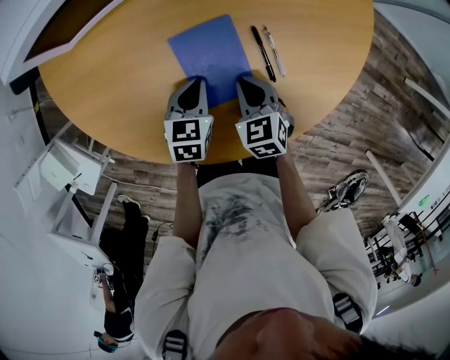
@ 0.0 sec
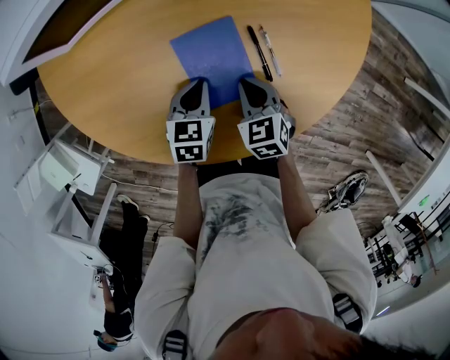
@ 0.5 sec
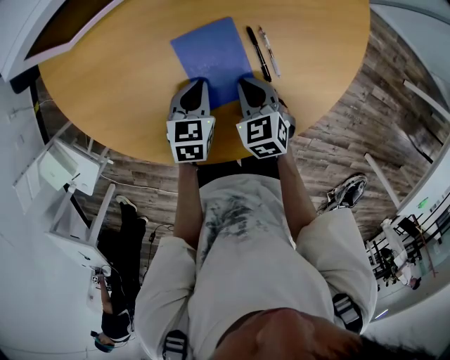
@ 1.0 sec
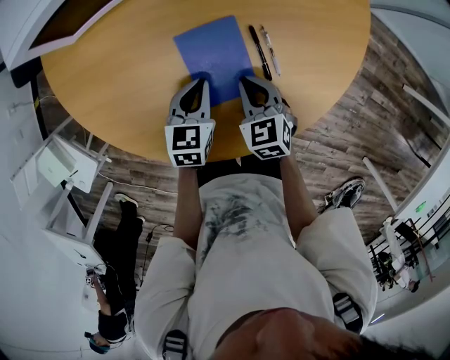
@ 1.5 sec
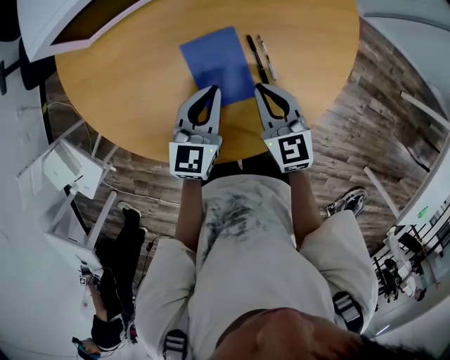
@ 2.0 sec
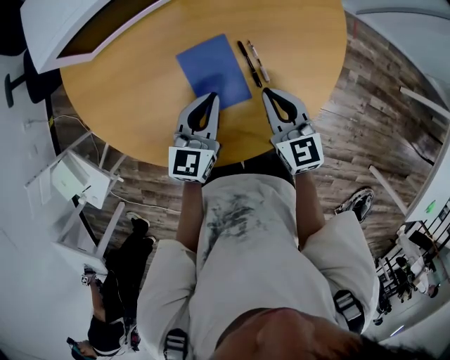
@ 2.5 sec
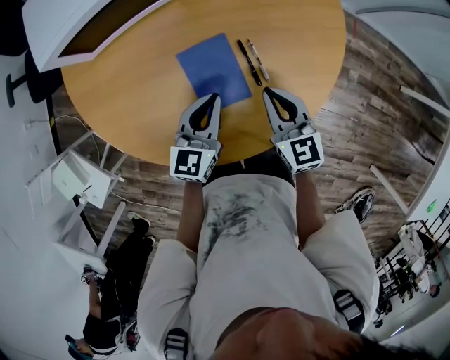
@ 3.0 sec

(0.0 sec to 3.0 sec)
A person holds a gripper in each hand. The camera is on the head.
0.0 sec - 1.5 sec: There are only small adjustments of the grippers.
1.5 sec - 3.0 sec: The right gripper is displaced upward and to the right by some 15 cm, and turns by about 20 degrees; the left gripper heads upward, covering roughly 10 cm, and swivels about 20 degrees.

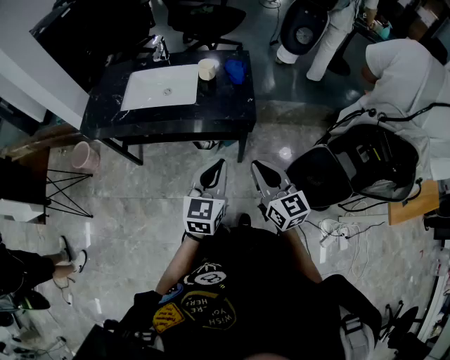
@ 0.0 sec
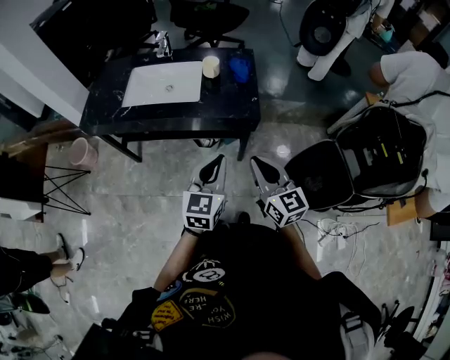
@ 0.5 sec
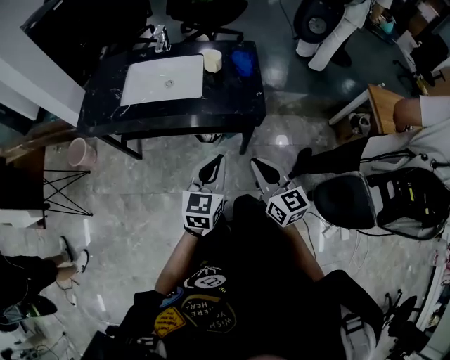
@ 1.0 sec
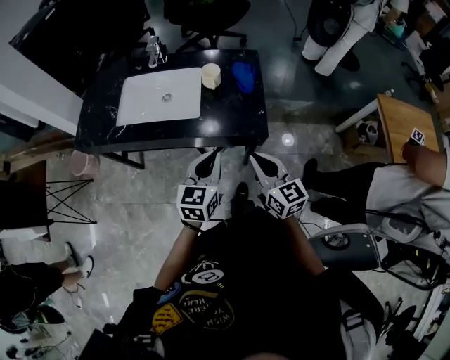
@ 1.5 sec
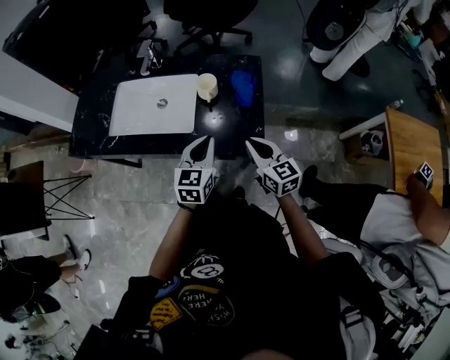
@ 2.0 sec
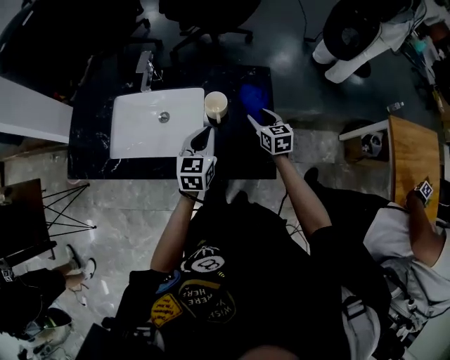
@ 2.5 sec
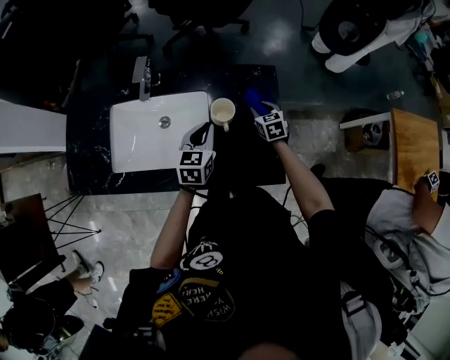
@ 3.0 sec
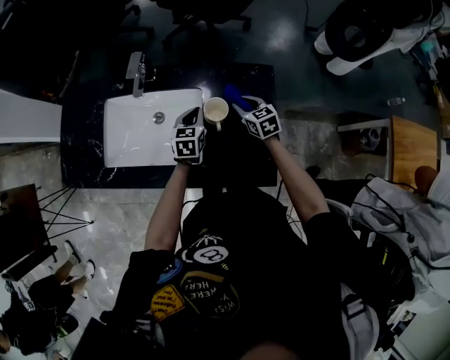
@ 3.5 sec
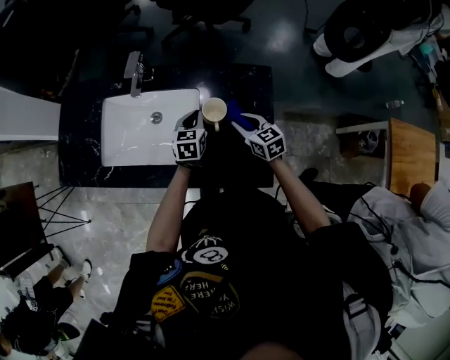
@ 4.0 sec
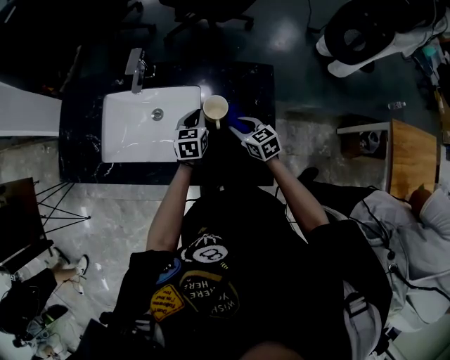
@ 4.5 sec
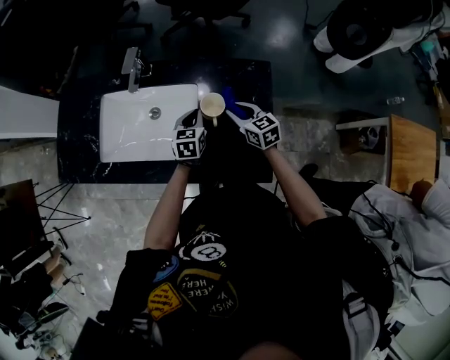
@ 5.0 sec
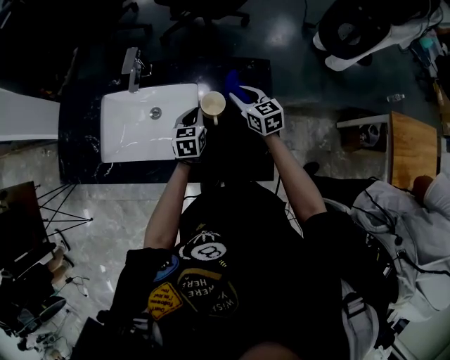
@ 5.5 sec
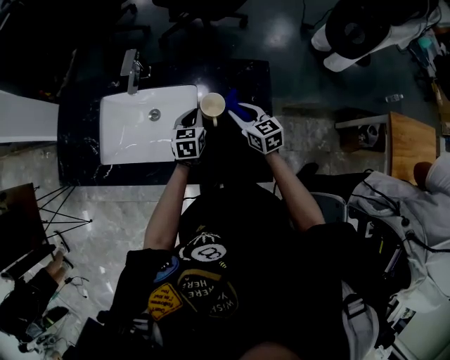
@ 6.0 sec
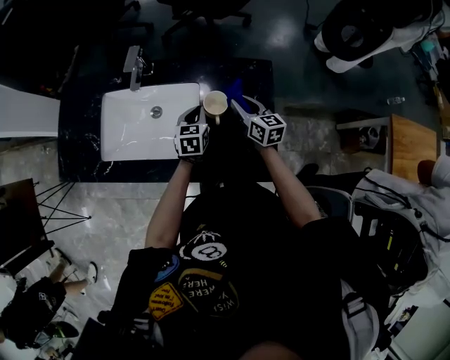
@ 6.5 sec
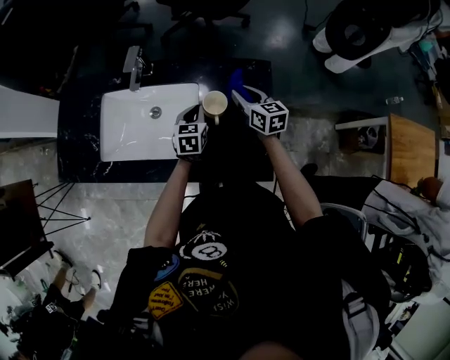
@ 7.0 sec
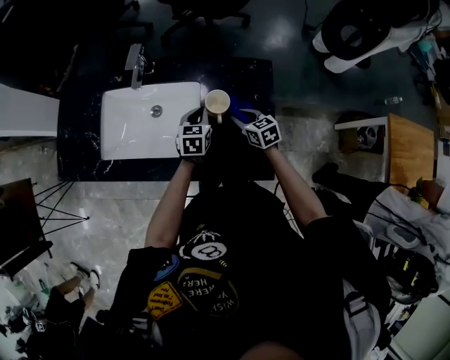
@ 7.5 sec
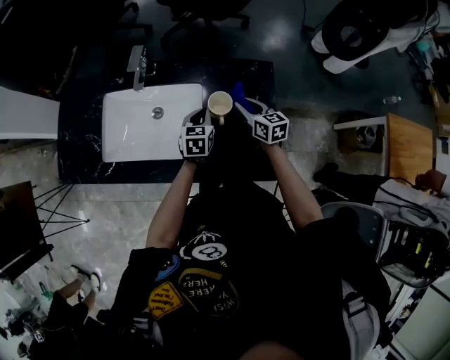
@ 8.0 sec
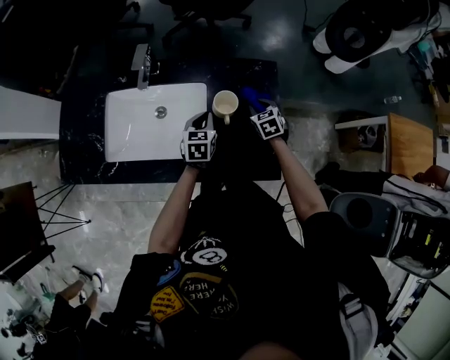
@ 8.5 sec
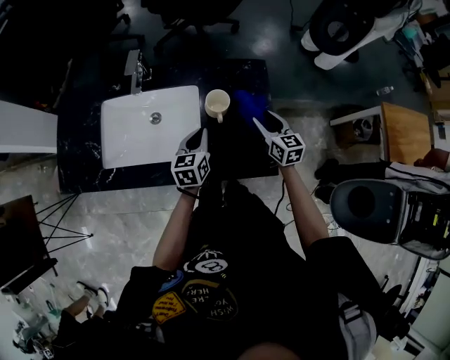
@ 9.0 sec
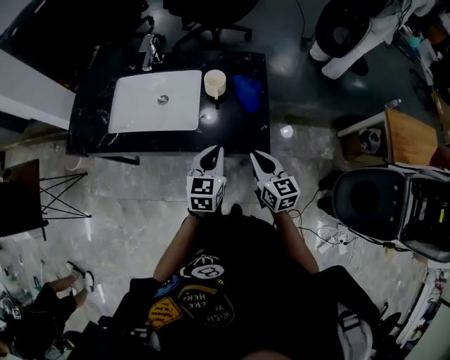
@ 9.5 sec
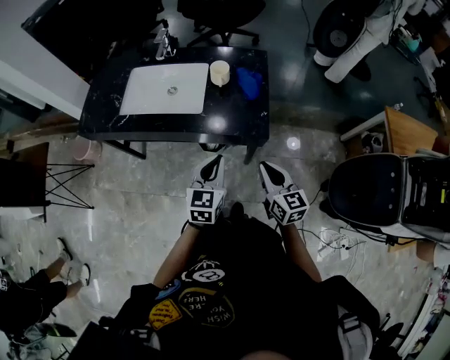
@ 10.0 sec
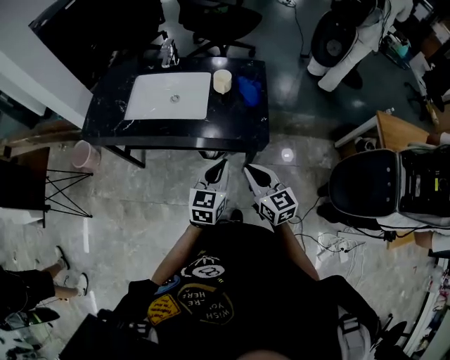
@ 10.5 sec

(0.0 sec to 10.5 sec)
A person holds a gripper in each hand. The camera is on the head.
0.0 sec - 2.0 sec: Both grippers move forward, some 30 cm.
2.0 sec - 4.0 sec: Both grippers move forward and downward, roughly 30 cm. The right gripper opens.
4.0 sec - 6.5 sec: The right gripper ends up about 5 cm from where it was, and turns by about 20 degrees.
6.5 sec - 8.5 sec: The right gripper moves up and down over roughly 10 cm, changing direction 2 times, and tilts its fingers some 30 degrees downward.
8.5 sec - 10.5 sec: The pair of grippers is taken backward, roughly 40 cm. The grippers both shift upward by roughly 20 cm. The right gripper tilts its fingers some 40 degrees upward, and closes up. The left gripper turns by some 20 degrees.

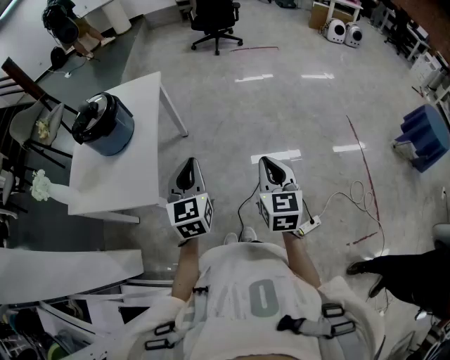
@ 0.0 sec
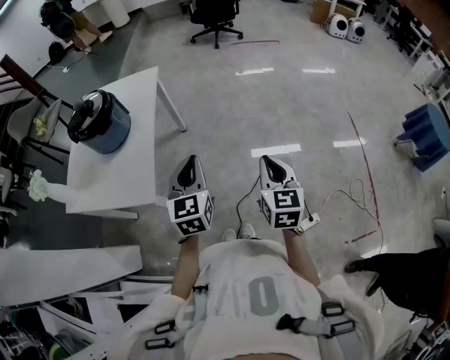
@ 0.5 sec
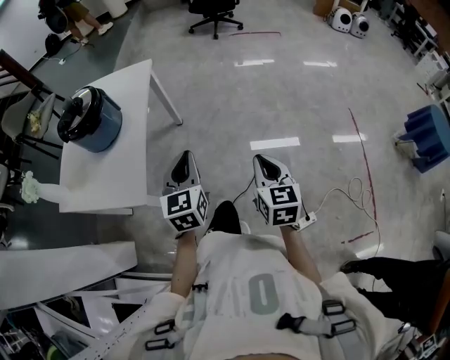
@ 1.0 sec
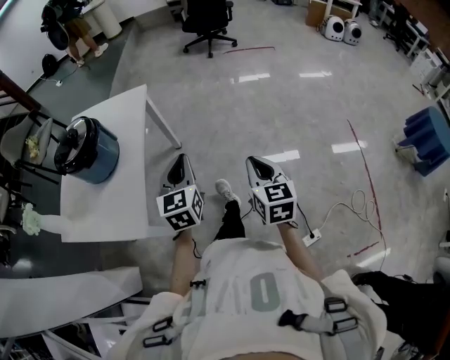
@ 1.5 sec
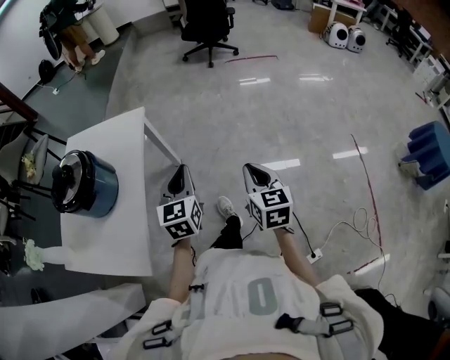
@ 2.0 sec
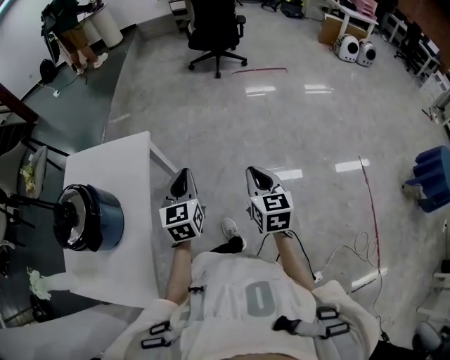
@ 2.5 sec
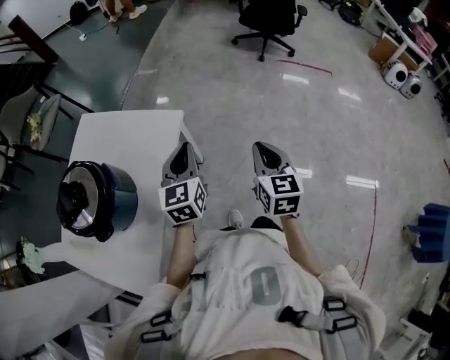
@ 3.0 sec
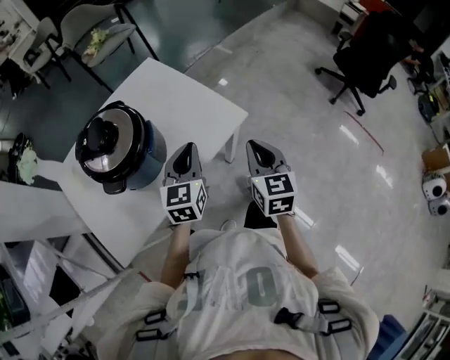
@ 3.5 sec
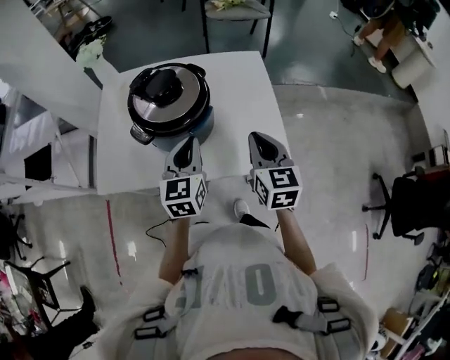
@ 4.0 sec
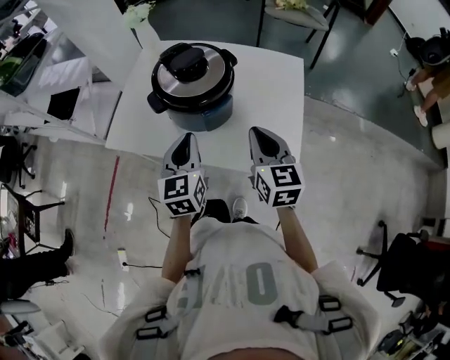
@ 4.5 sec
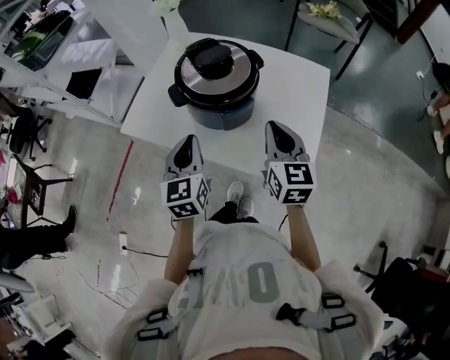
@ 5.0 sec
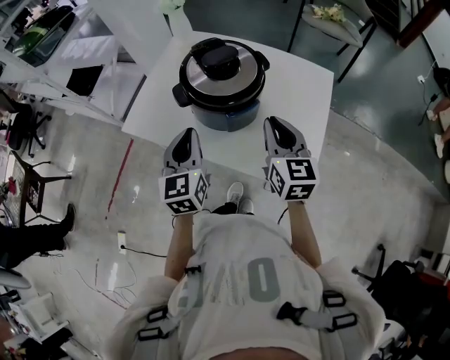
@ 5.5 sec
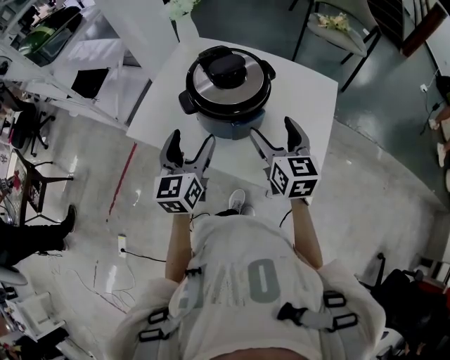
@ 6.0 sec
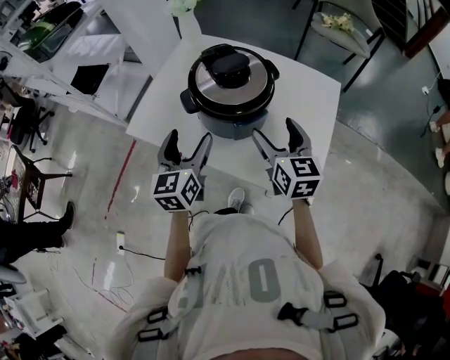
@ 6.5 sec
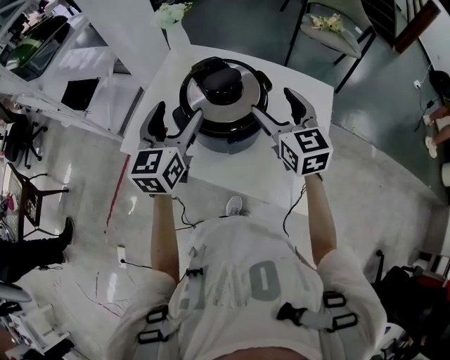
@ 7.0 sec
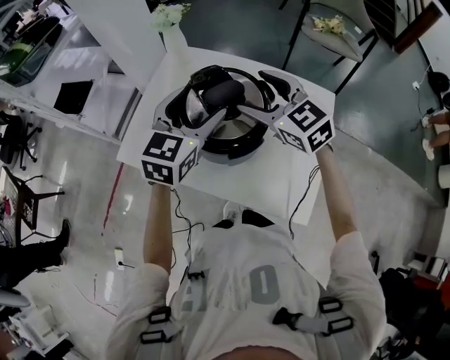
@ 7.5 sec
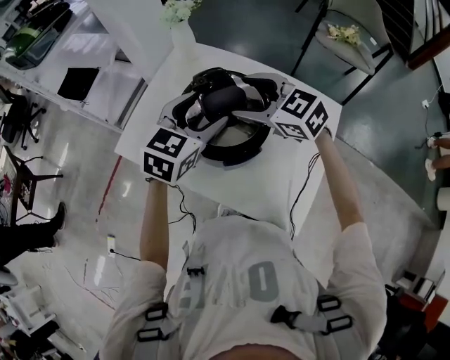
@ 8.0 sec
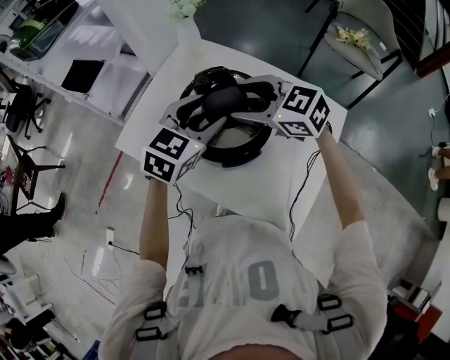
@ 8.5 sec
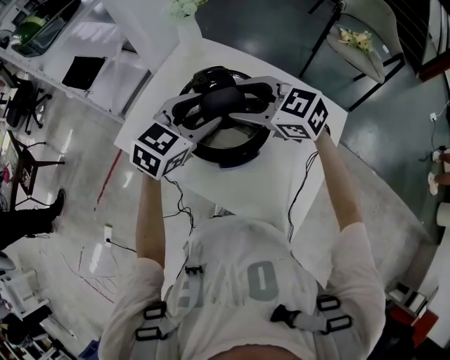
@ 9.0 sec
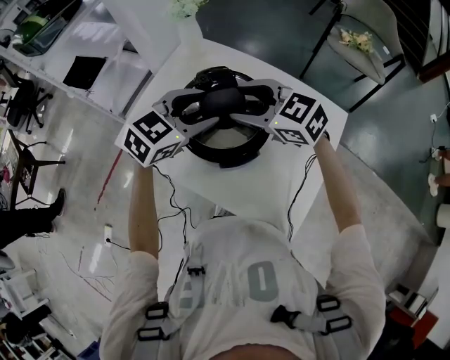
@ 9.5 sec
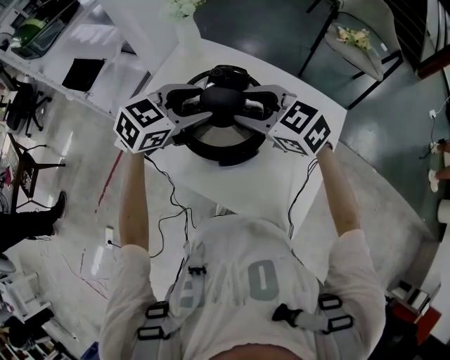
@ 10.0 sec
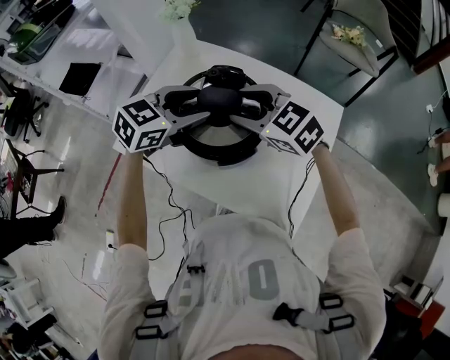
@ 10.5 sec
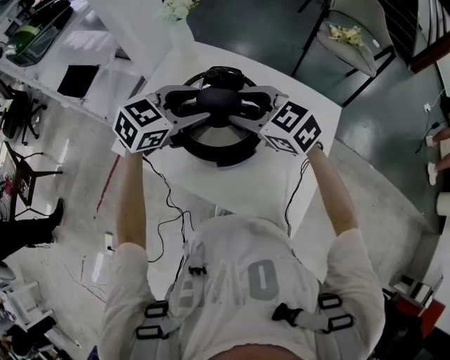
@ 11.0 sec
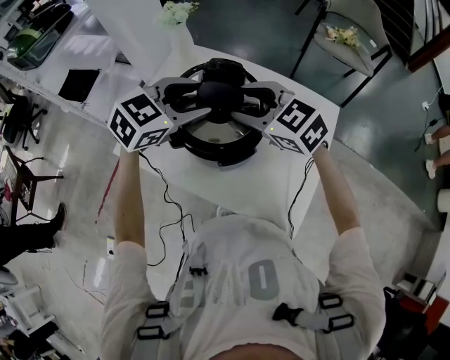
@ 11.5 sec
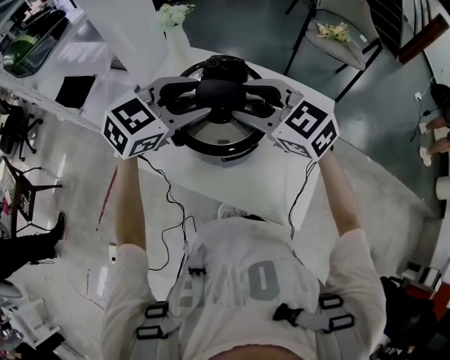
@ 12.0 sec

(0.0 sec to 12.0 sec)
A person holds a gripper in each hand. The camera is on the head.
0.0 sec - 2.0 sec: Both grippers travel together forward, about 30 cm.
2.0 sec - 4.0 sec: The right gripper moves roughly 60 cm, and changes its angle by roughly 90 degrees; the left gripper ends up approximately 40 cm from where it was, and turns by about 80 degrees.
4.0 sec - 6.0 sec: The left gripper ends up approximately 10 cm from where it was, rotates some 30 degrees, and opens up; the right gripper changes place by roughly 10 cm, swivels roughly 30 degrees, and opens up.
6.0 sec - 8.0 sec: The right gripper travels forward by about 15 cm, and rotates some 50 degrees, while the left gripper is displaced forward and to the right by roughly 20 cm, and swivels about 30 degrees.
8.0 sec - 10.0 sec: The right gripper closes, while the left gripper changes its angle by roughly 20 degrees.
10.0 sec - 12.0 sec: Both grippers travel together upward, roughly 5 cm.

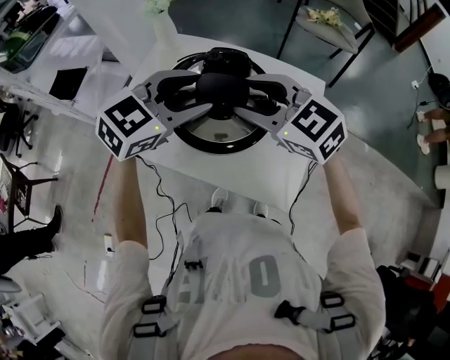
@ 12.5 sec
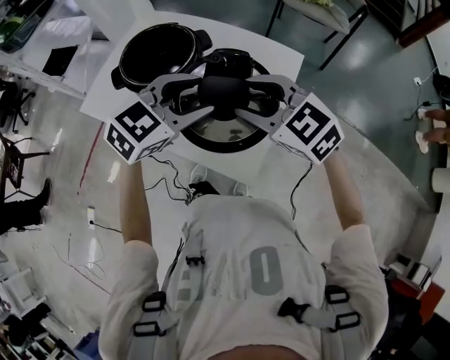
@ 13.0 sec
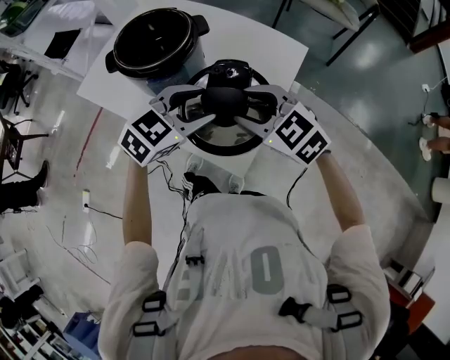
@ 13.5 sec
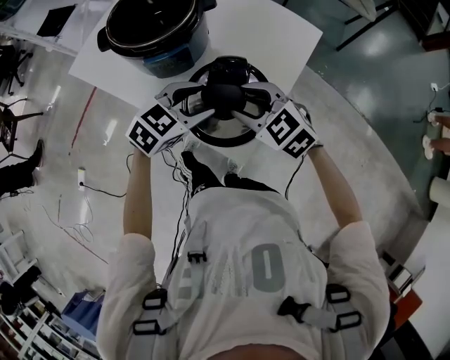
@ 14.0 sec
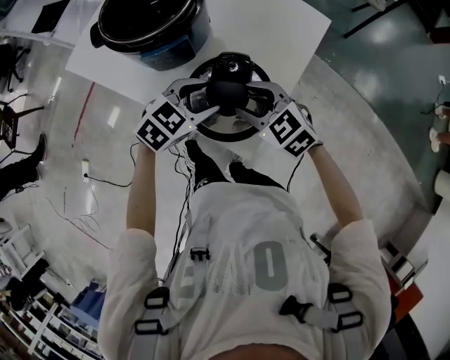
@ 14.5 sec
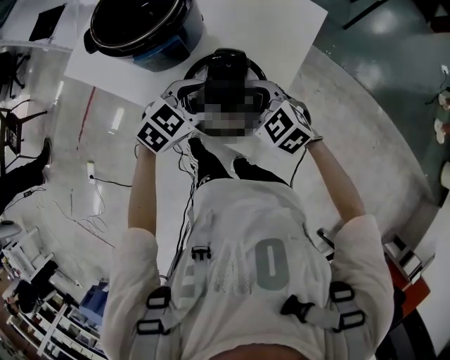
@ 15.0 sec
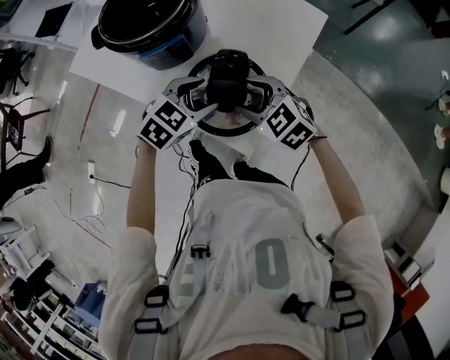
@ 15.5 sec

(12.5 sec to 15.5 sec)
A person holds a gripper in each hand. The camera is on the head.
12.5 sec - 14.0 sec: Both grippers travel together downward, to the right and backward, approximately 30 cm. The left gripper turns by some 20 degrees.
14.0 sec - 15.5 sec: The right gripper moves downward, roughly 5 cm.
